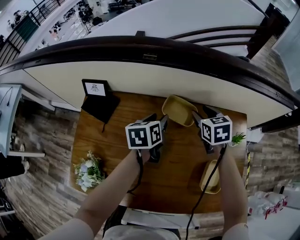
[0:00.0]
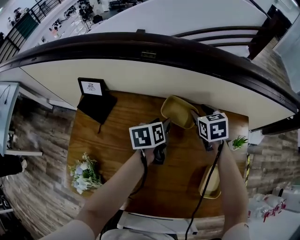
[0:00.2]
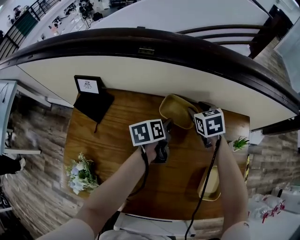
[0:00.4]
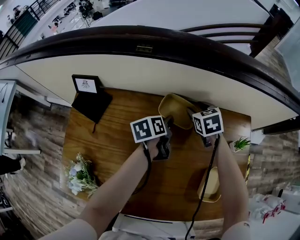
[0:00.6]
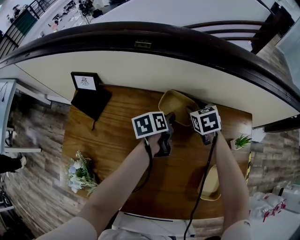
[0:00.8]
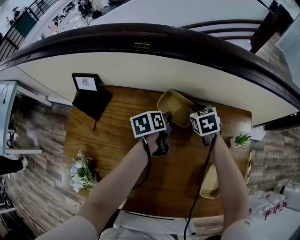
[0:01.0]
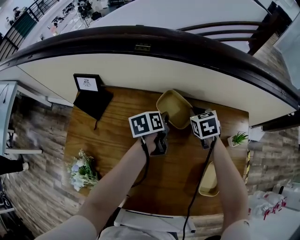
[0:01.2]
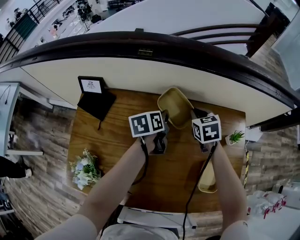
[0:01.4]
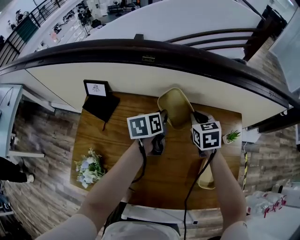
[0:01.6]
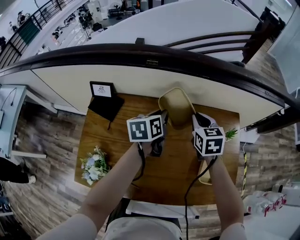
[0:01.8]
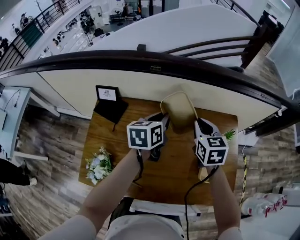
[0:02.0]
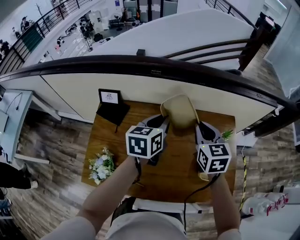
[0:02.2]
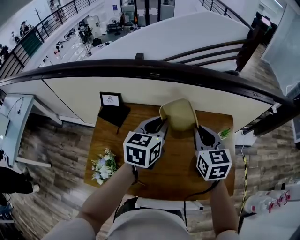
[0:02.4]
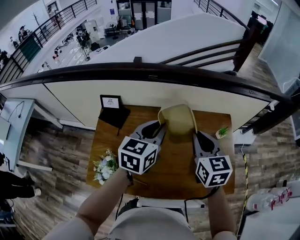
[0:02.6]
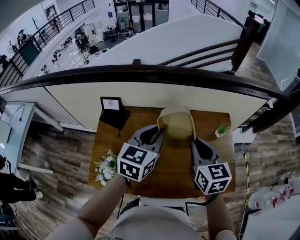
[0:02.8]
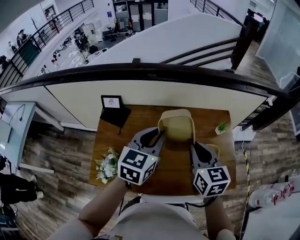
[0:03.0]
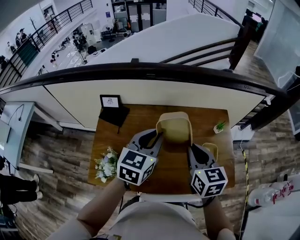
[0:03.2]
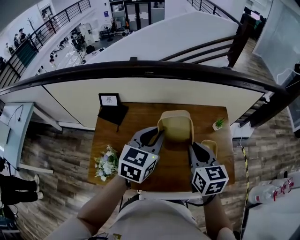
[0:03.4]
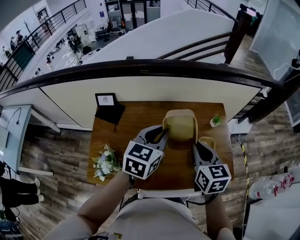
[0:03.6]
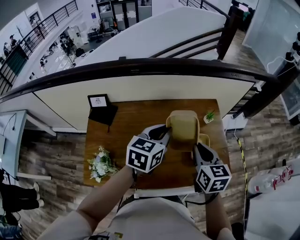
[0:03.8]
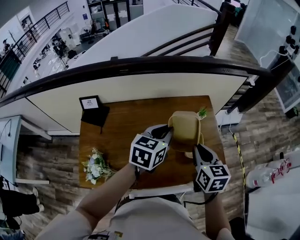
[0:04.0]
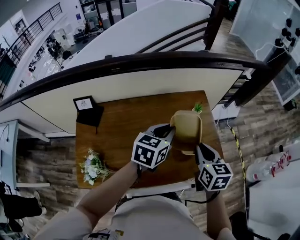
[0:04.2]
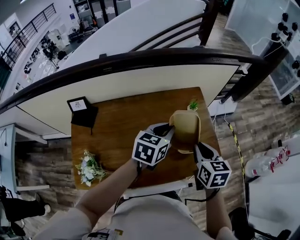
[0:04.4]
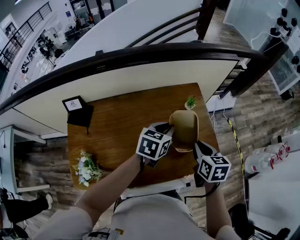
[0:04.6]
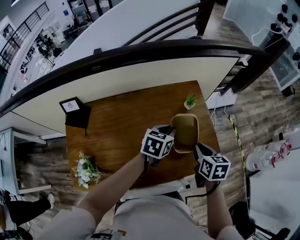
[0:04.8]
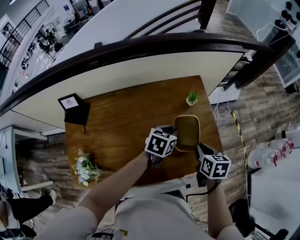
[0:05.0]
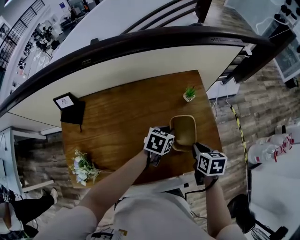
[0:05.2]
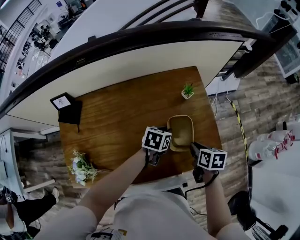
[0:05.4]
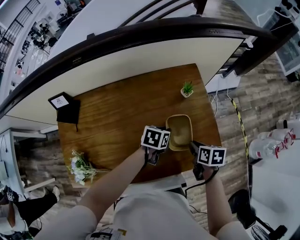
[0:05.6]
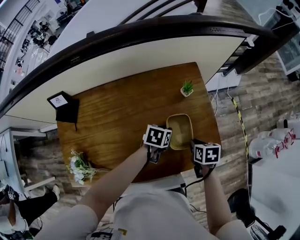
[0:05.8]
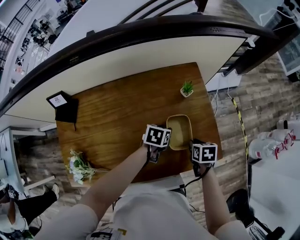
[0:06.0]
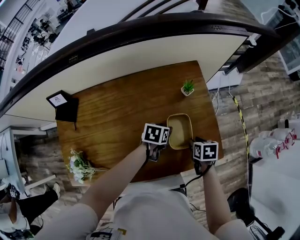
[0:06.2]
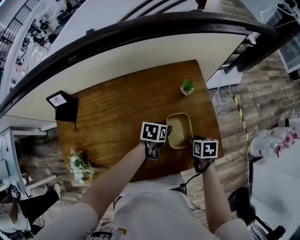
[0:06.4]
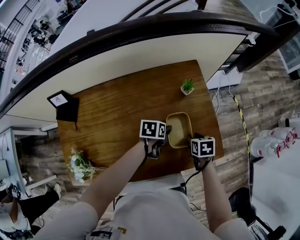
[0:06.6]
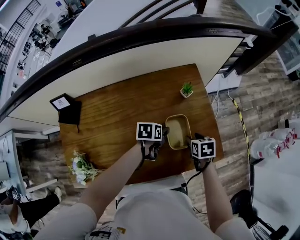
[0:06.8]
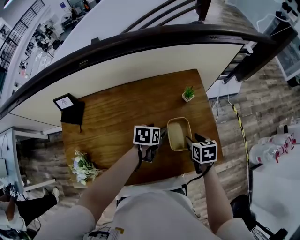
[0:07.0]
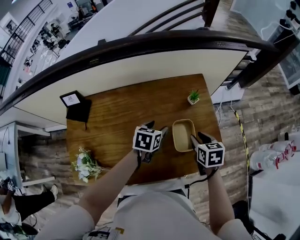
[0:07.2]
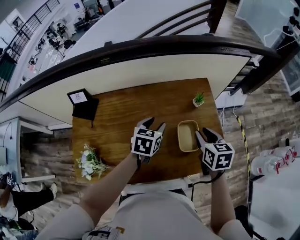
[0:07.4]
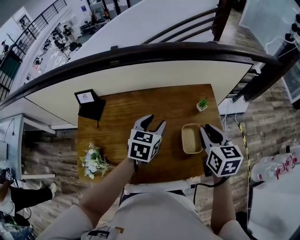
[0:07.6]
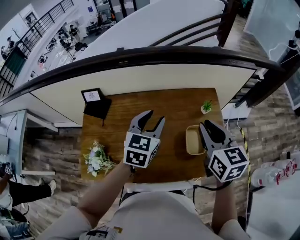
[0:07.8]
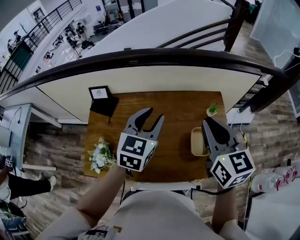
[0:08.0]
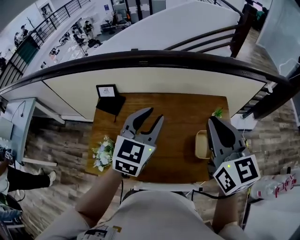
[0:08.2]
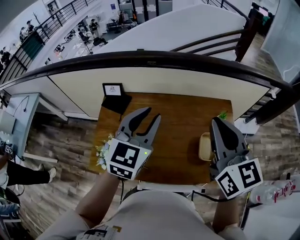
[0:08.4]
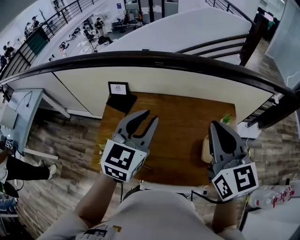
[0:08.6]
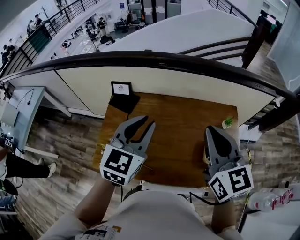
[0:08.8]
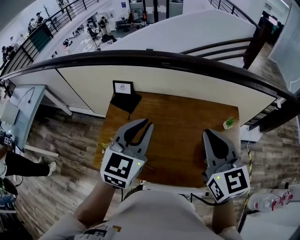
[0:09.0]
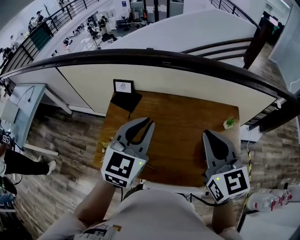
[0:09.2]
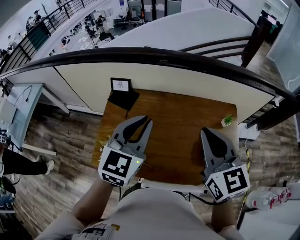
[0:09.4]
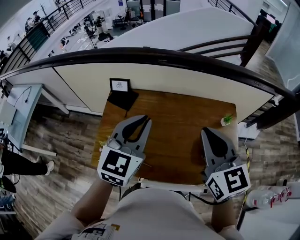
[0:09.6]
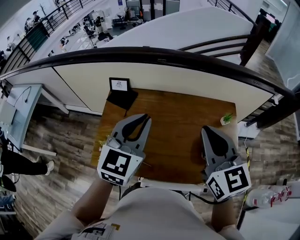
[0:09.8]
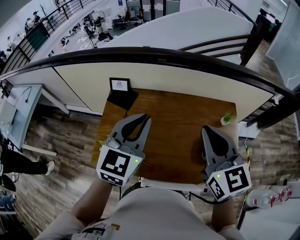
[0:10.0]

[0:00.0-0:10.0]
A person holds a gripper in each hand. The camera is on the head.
0:00.0 to 0:01.4: The left gripper closes up; the right gripper closes.
0:01.4 to 0:02.8: Both grippers move upward and backward, some 35 cm. The left gripper rotates around the line of its fingers by roughly 50 degrees, clockwise from behind, while the right gripper changes its angle by some 30 degrees.
0:02.8 to 0:04.2: Both grippers move to the right, roughly 15 cm. The right gripper changes its angle by about 20 degrees, while the left gripper turns by about 20 degrees.
0:04.2 to 0:05.8: The right gripper shifts approximately 25 cm downward and to the right, and points its fingers some 30 degrees further downward, while the left gripper moves downward, approximately 30 cm, and changes its angle by about 40 degrees.
0:05.8 to 0:07.2: The right gripper goes some 10 cm upward. Meanwhile the left gripper goes about 10 cm to the left and upward, and opens its fingers.
0:07.2 to 0:08.6: Both grippers travel together upward and to the left, approximately 40 cm. The right gripper angles its fingers upward, by some 40 degrees. Meanwhile the left gripper tilts its fingers roughly 30 degrees upward, and closes.
0:08.6 to 0:10.0: There are only small adjustments of the grippers.

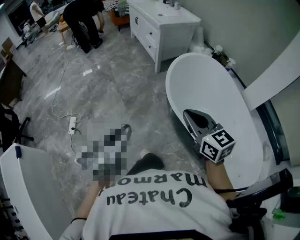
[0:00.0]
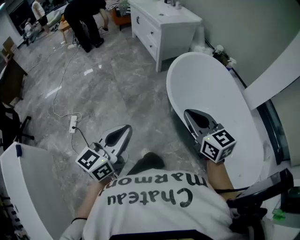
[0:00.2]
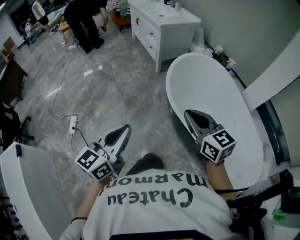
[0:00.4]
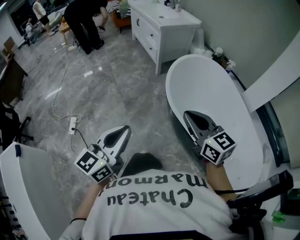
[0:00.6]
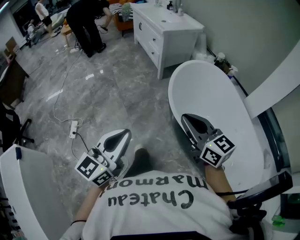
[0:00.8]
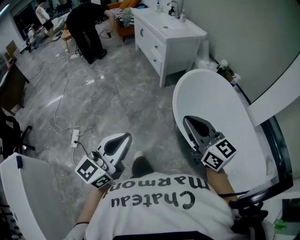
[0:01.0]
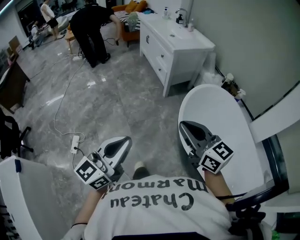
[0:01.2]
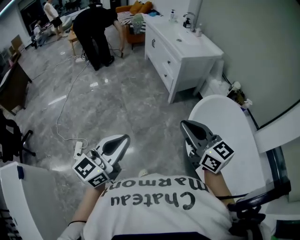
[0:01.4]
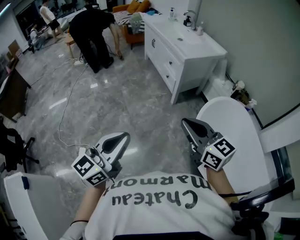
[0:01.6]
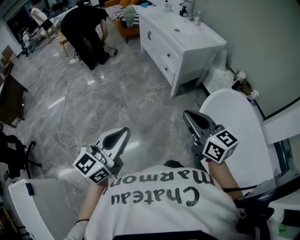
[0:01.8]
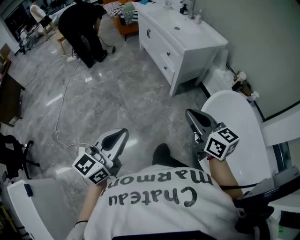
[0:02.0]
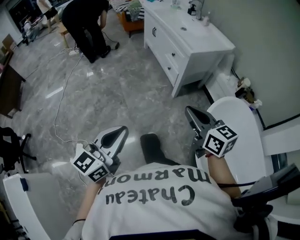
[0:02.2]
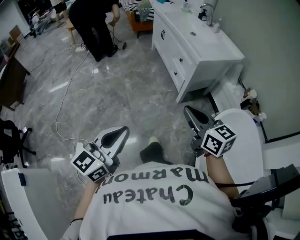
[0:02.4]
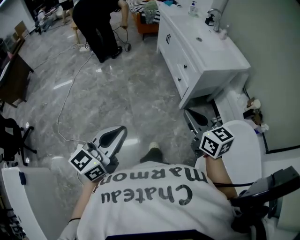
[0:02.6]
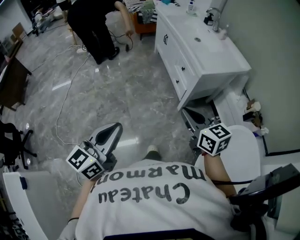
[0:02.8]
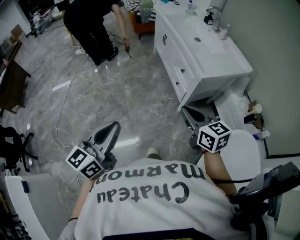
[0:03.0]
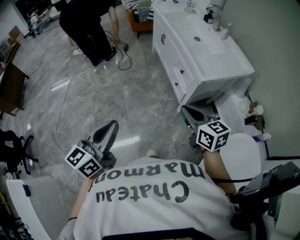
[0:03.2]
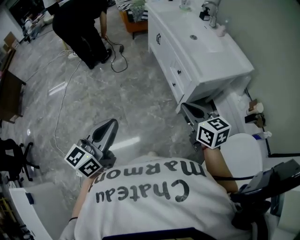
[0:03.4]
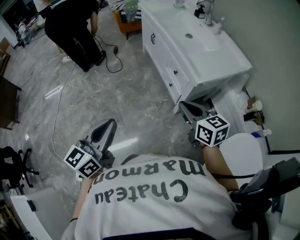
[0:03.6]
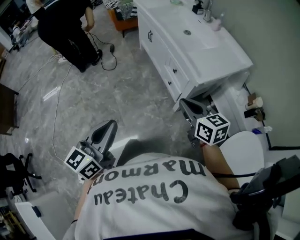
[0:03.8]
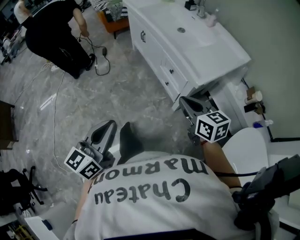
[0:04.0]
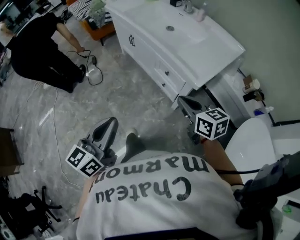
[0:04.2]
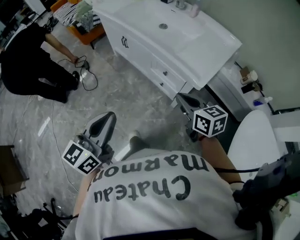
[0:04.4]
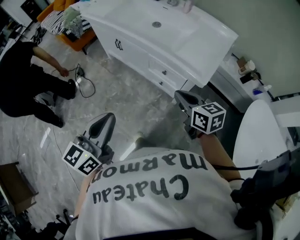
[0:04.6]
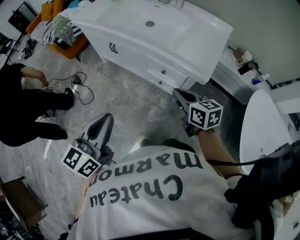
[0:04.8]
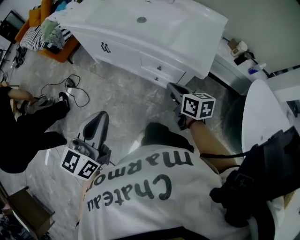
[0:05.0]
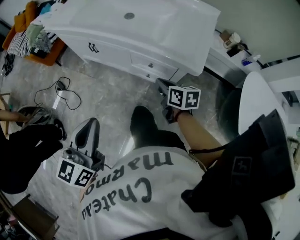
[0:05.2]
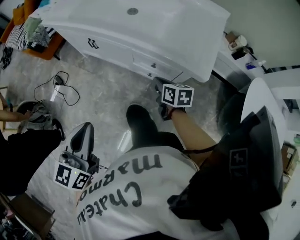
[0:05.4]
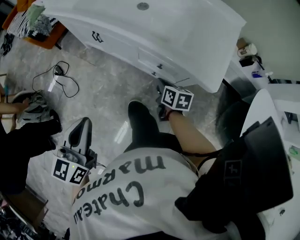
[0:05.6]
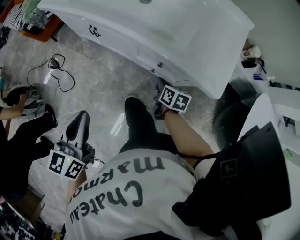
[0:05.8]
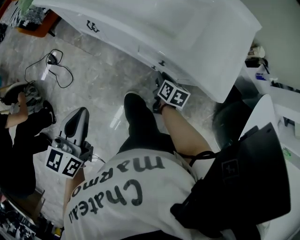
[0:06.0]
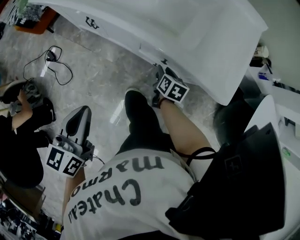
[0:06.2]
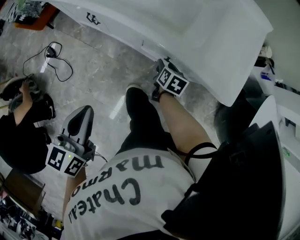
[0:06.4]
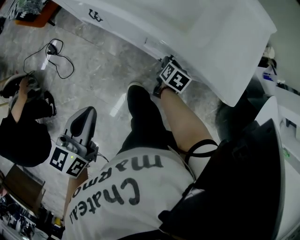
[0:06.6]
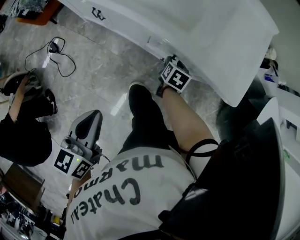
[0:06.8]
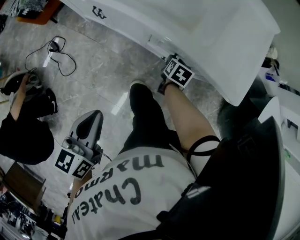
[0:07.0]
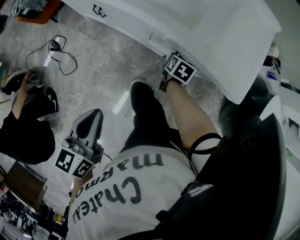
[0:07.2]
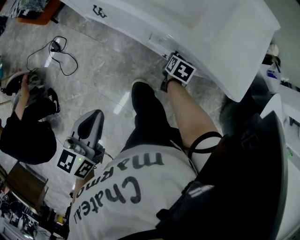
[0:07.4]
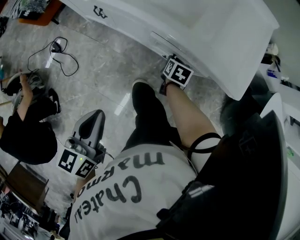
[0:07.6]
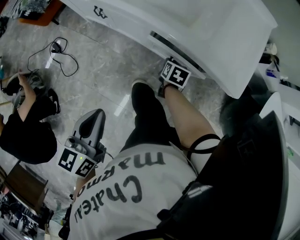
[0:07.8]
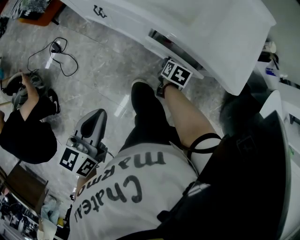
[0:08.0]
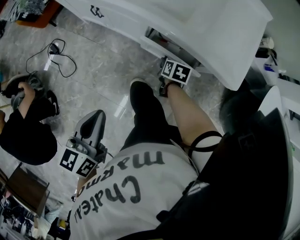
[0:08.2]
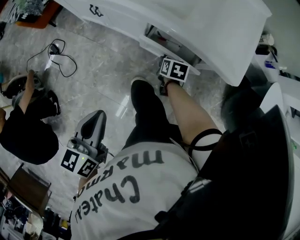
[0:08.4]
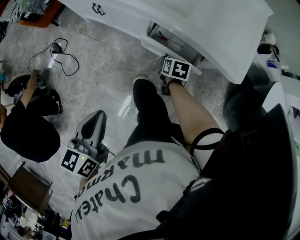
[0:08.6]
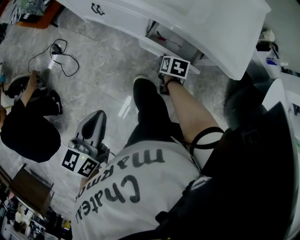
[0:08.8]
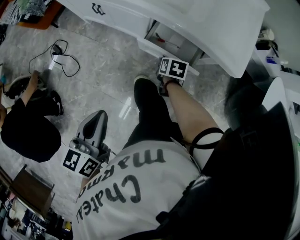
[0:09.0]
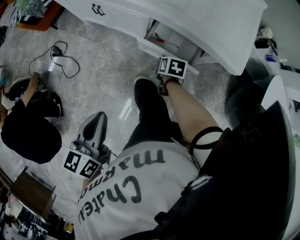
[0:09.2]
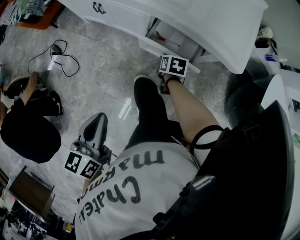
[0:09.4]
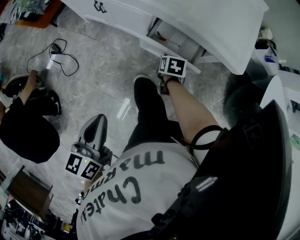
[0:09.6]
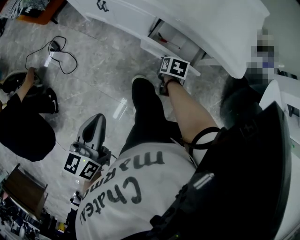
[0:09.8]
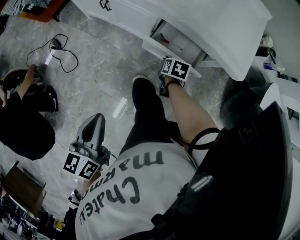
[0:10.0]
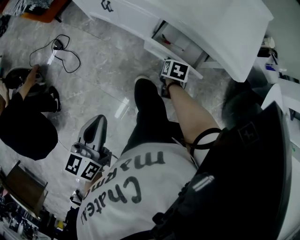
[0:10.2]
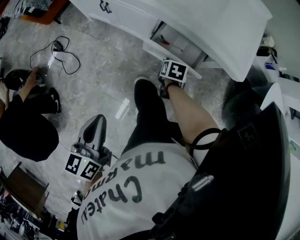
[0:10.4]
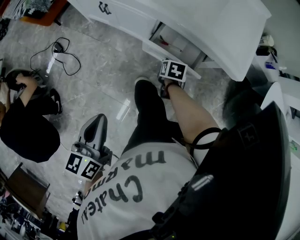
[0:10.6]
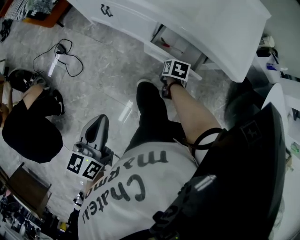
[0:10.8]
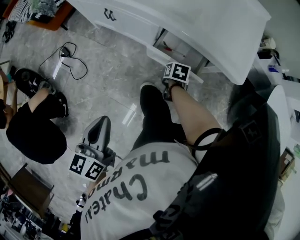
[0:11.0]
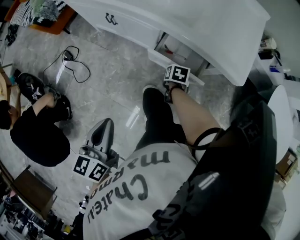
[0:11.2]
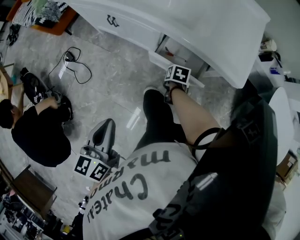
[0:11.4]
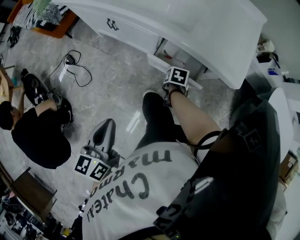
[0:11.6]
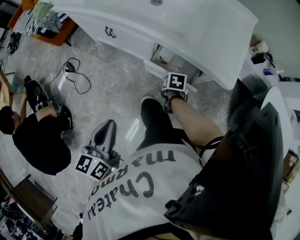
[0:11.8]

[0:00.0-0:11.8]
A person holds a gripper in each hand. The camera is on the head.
0:00.0 to 0:01.4: The grippers both shift forward and to the left by roughly 25 cm.
0:01.4 to 0:03.0: Both grippers move forward, roughly 40 cm.
0:03.0 to 0:04.4: The left gripper shifts by about 35 cm, and swivels about 30 degrees. The right gripper moves some 25 cm, and swivels approximately 30 degrees.
0:04.4 to 0:06.0: The left gripper is displaced forward, downward and to the left by some 30 cm. Meanwhile the right gripper moves downward and forward, roughly 35 cm, and rotates some 50 degrees.
0:06.0 to 0:07.4: The right gripper moves roughly 5 cm, and opens, then closes again.
0:07.4 to 0:08.8: Both grippers move backward, approximately 5 cm.
0:08.8 to 0:11.8: The grippers stay close to where they were, moving slightly.

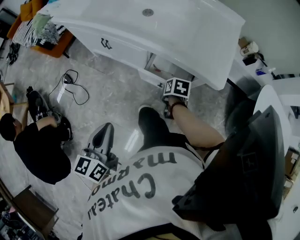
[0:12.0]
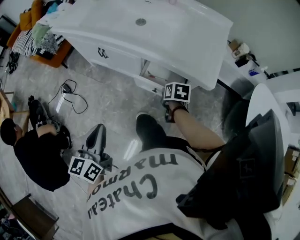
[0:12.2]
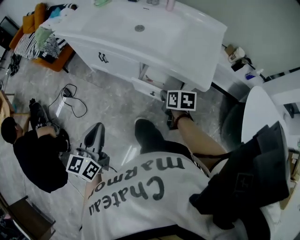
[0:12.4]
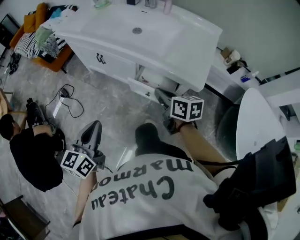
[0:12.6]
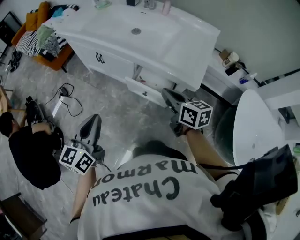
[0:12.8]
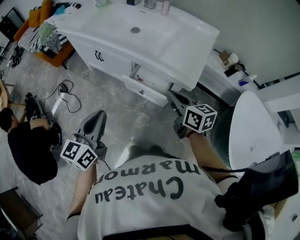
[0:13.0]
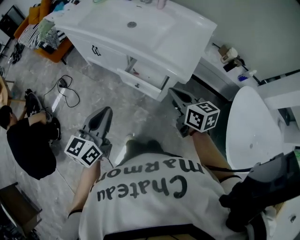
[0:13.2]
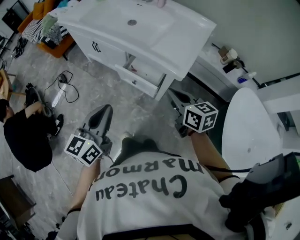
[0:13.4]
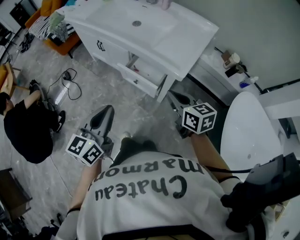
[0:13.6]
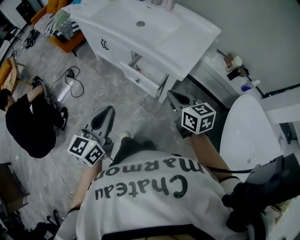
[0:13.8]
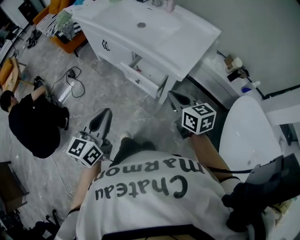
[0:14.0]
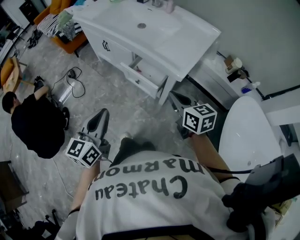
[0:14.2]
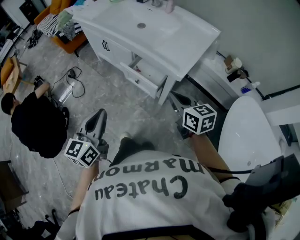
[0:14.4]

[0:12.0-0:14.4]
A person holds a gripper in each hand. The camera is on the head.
0:12.0 to 0:13.2: The right gripper goes some 25 cm upward and backward, and angles its fingers upward, by some 40 degrees; the left gripper heads to the right and upward, covering about 15 cm.
0:13.2 to 0:14.4: The left gripper is displaced backward by approximately 10 cm; the right gripper goes some 5 cm backward.
